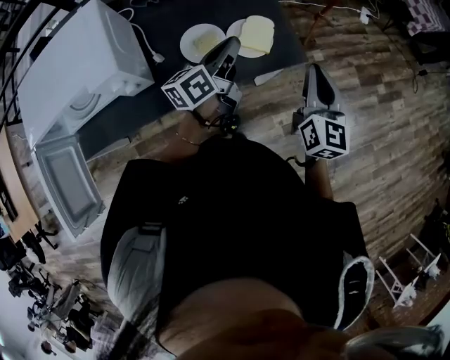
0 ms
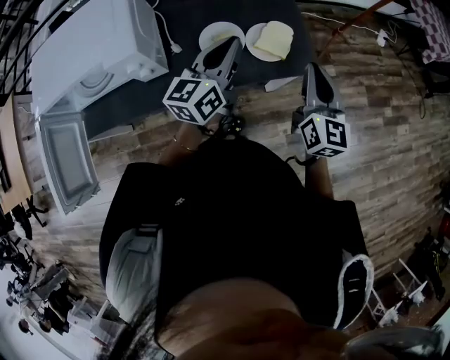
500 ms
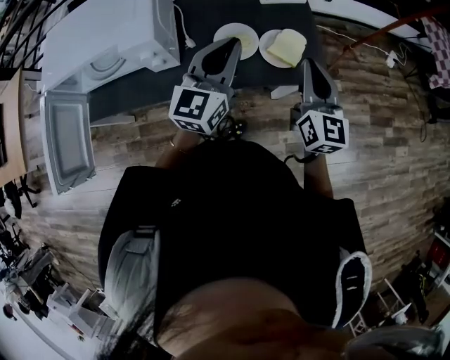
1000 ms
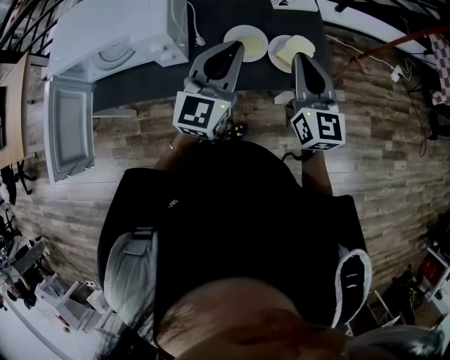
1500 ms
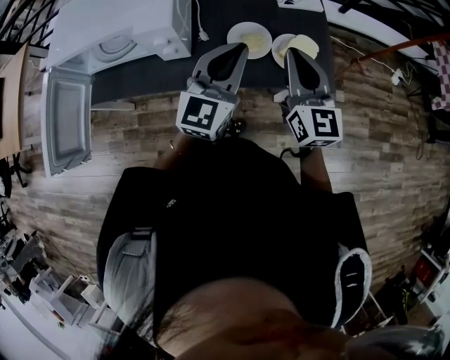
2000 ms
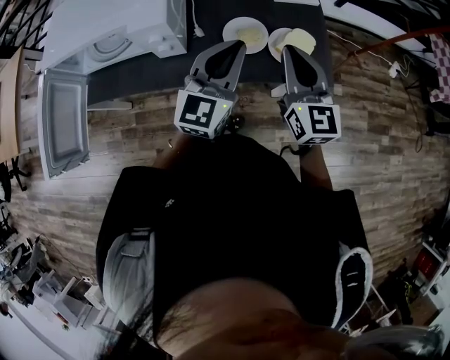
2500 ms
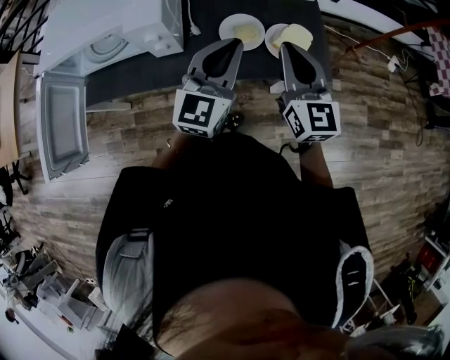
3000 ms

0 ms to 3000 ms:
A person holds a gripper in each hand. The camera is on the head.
0 ms to 1500 ms: The right gripper heads to the left, covering roughly 15 cm, and turns by about 30 degrees. Meanwhile the left gripper goes about 15 cm upward, to the left and backward, and rolls clockwise, seen from behind, by roughly 50 degrees.
1500 ms to 3000 ms: The grippers stay close to where they were, moving slightly.

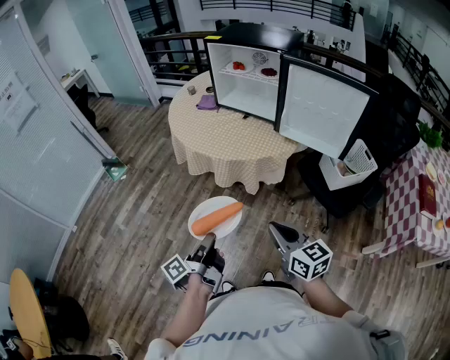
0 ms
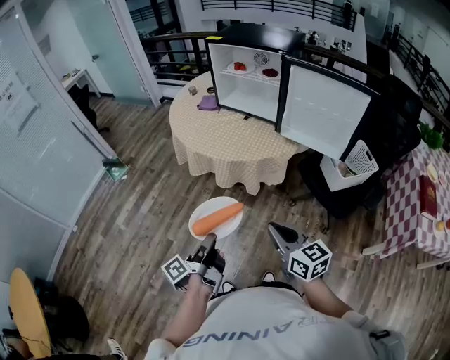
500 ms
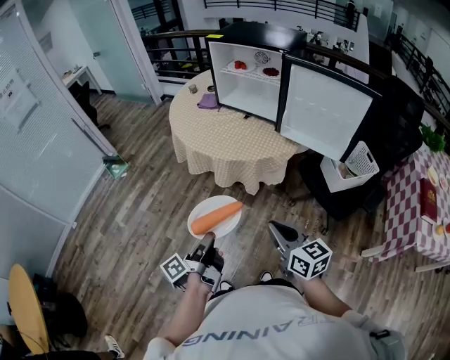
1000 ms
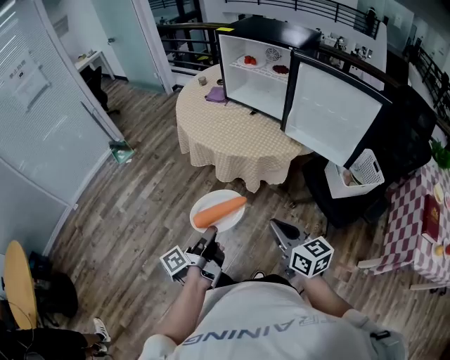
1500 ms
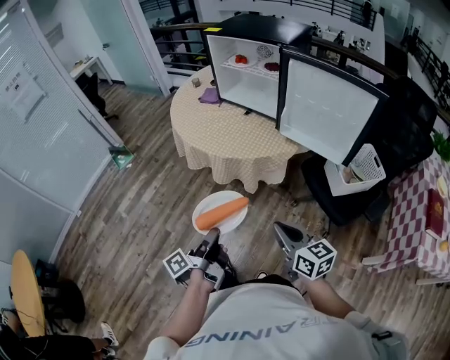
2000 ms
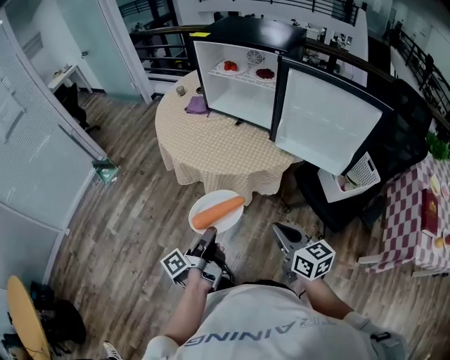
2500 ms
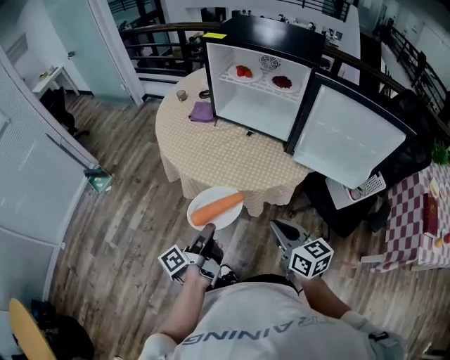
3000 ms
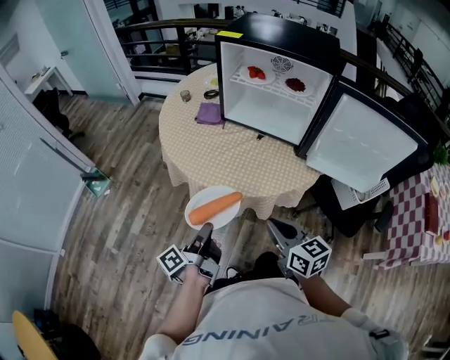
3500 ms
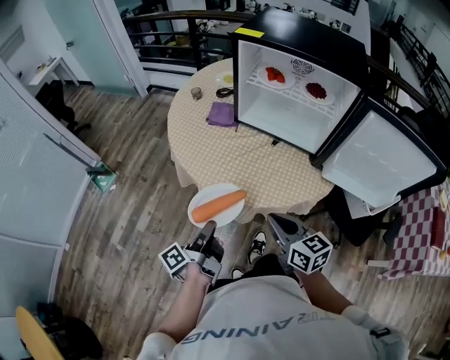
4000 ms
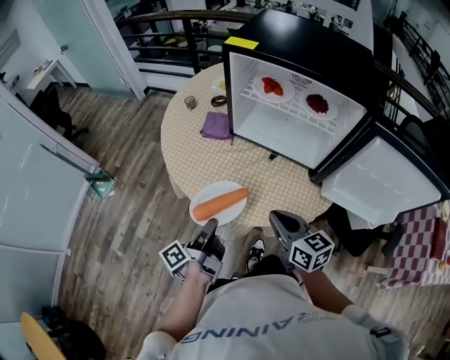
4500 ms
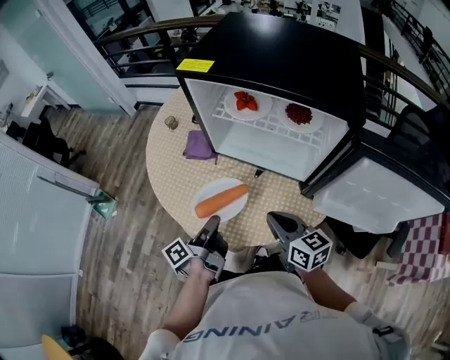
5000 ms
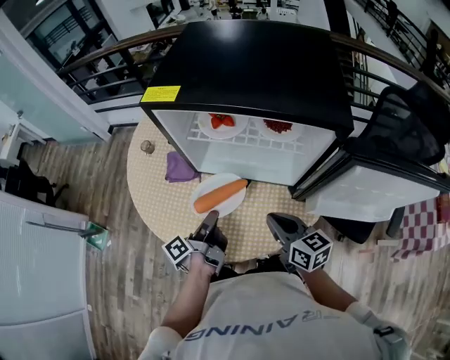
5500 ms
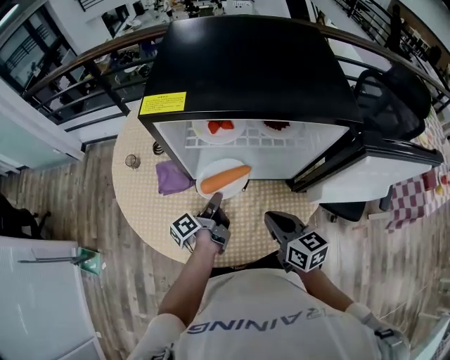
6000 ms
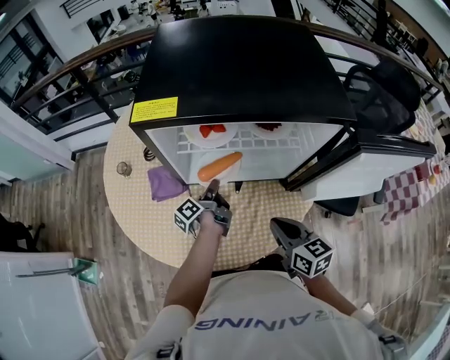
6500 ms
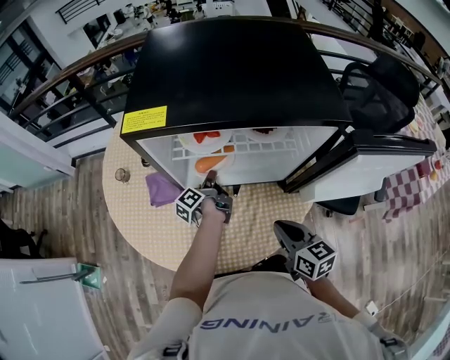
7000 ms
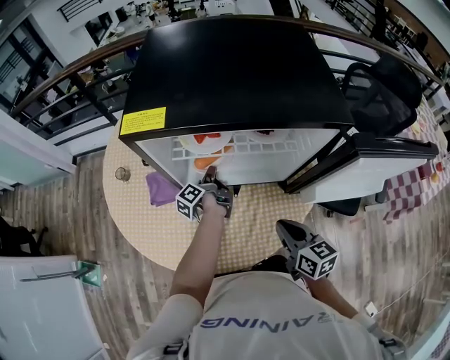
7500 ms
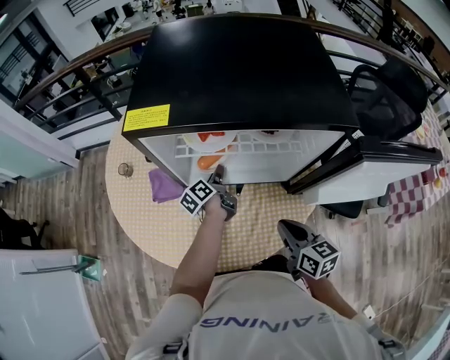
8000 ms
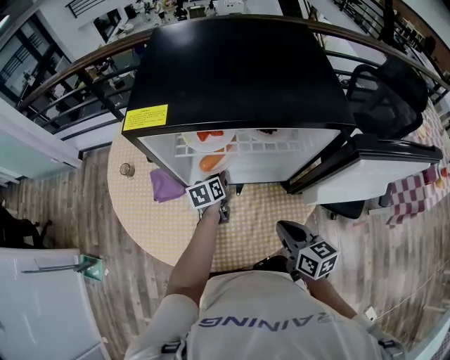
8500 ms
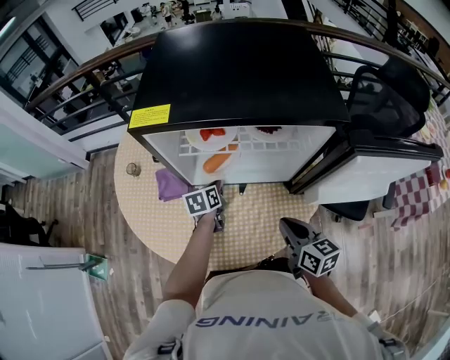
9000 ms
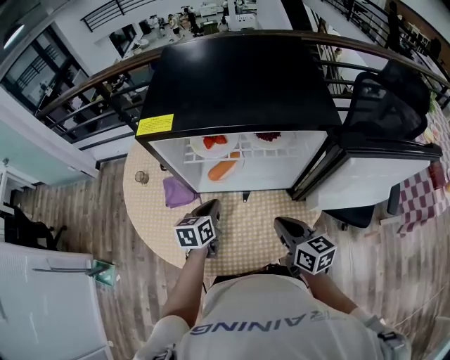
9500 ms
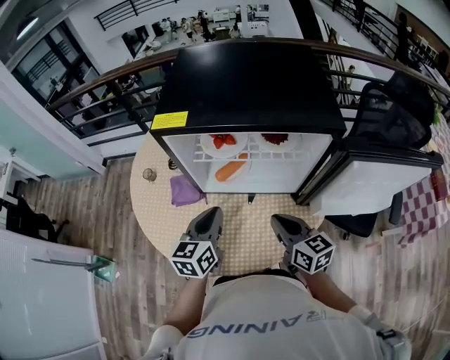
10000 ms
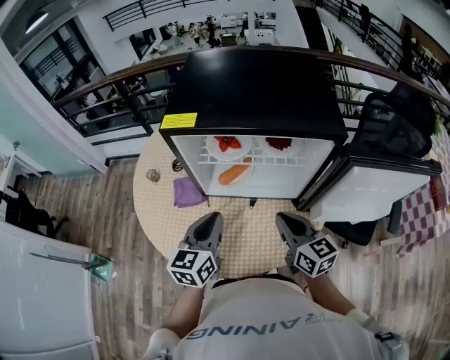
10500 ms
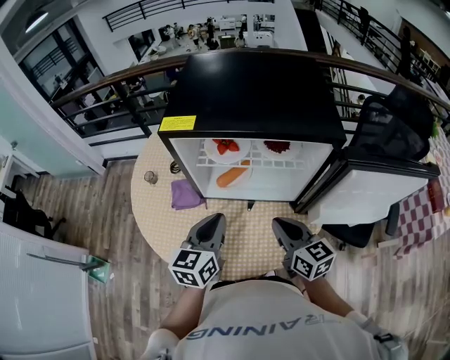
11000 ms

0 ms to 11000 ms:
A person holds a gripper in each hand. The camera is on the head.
0 ms to 2000 ms: The right gripper moves roughly 10 cm.
2000 ms to 3500 ms: The right gripper ends up about 25 cm from where it was.
3500 ms to 5500 ms: The right gripper ends up about 25 cm from where it was.
5500 ms to 7500 ms: The right gripper turns by roughly 20 degrees.
9000 ms to 11000 ms: The right gripper is displaced upward by approximately 5 cm.

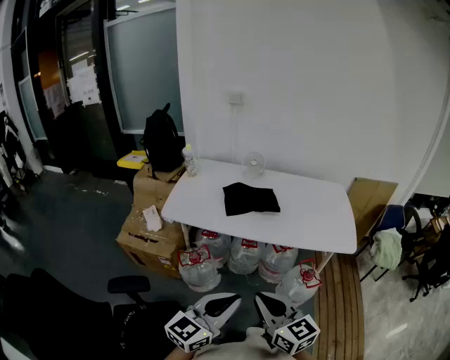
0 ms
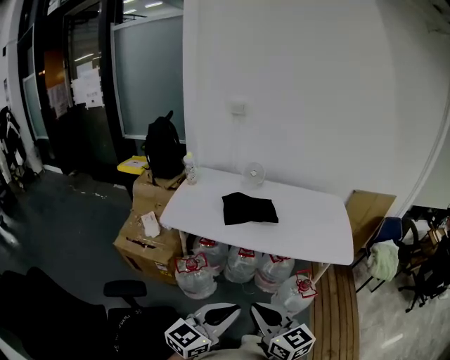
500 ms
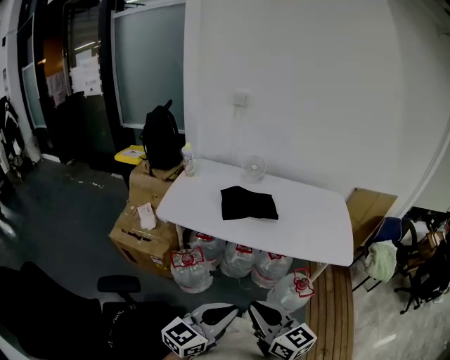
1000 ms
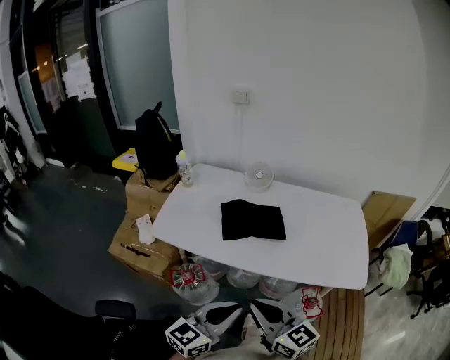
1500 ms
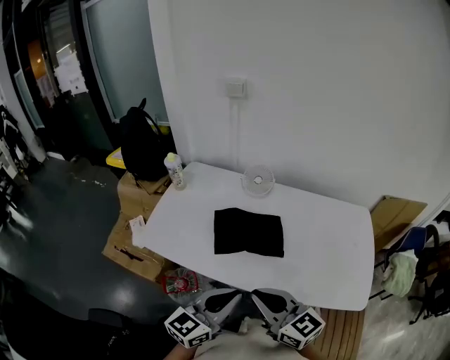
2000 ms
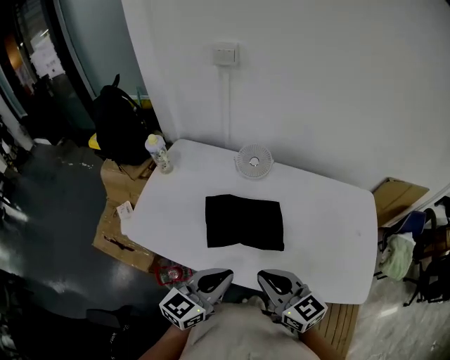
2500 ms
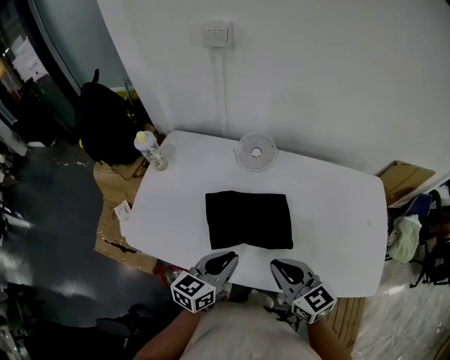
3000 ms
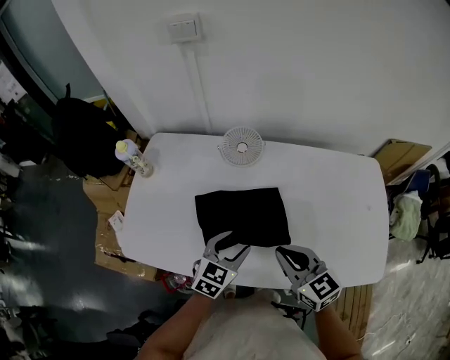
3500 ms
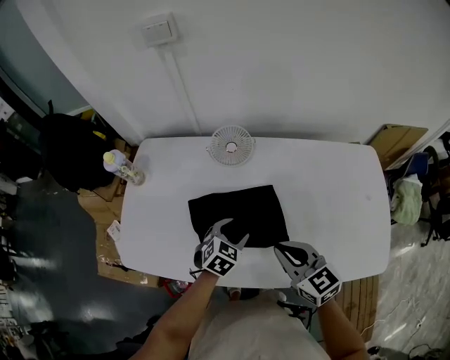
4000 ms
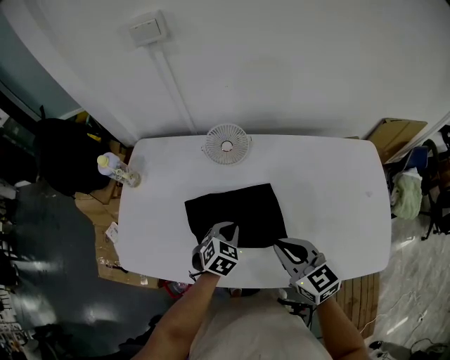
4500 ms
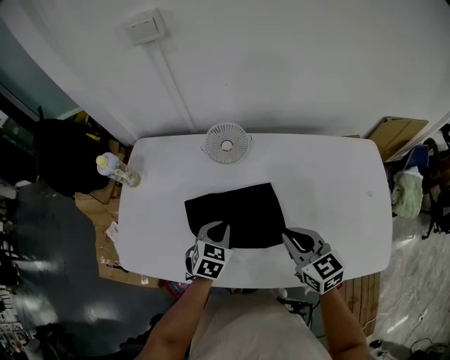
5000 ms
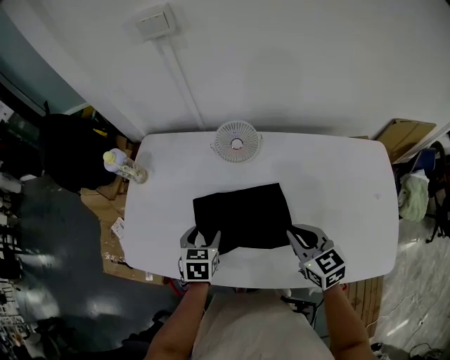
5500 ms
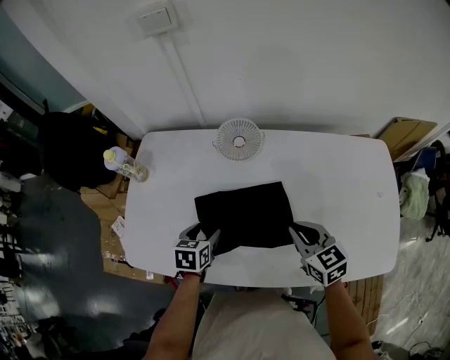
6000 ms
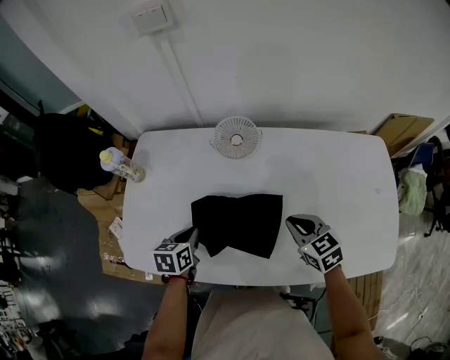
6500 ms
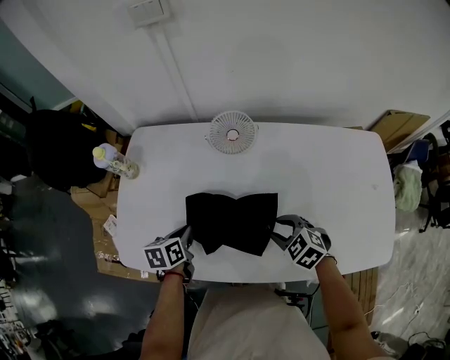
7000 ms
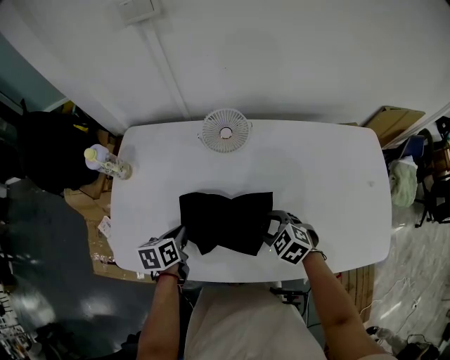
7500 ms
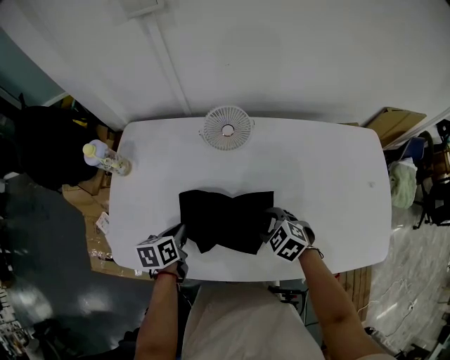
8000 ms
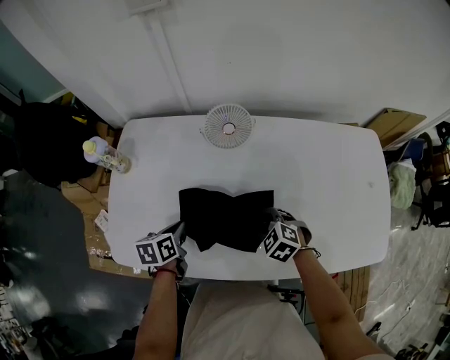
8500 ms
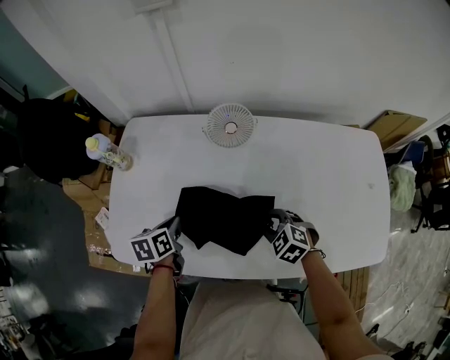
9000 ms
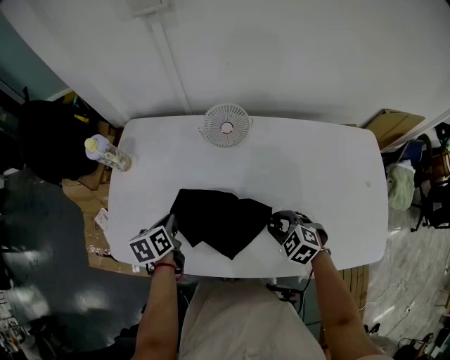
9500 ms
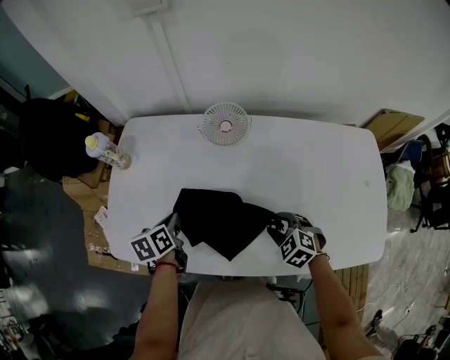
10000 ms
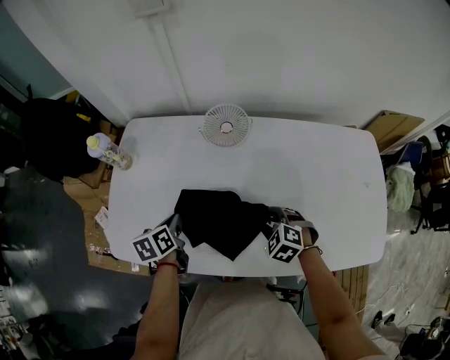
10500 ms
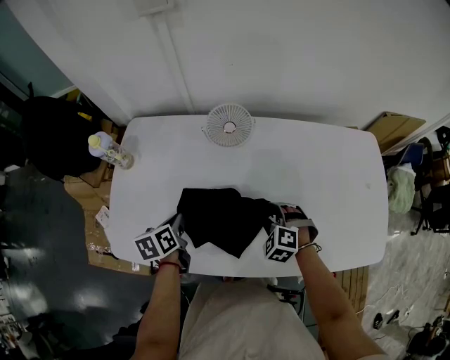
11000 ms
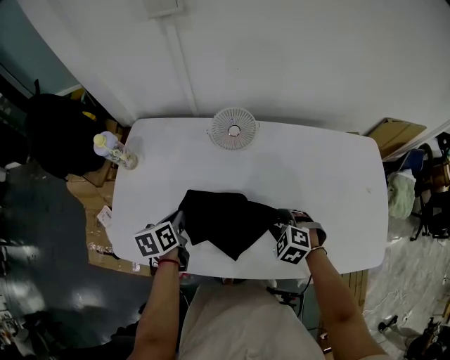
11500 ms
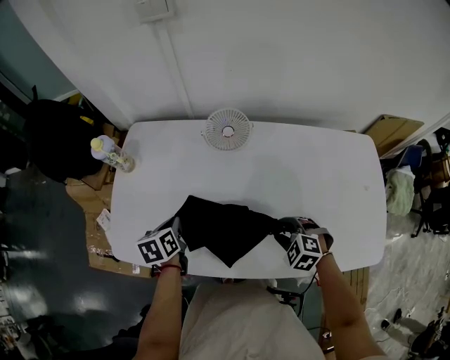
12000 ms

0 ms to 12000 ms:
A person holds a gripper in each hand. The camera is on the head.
0 ms to 2000 ms: The grippers both shift forward by approximately 35 cm.
2000 ms to 4000 ms: The right gripper travels forward and downward by approximately 25 cm, and swivels some 20 degrees; the left gripper heads forward and downward, covering approximately 40 cm, tips its fingers downward by roughly 40 degrees, and opens up.
4000 ms to 6000 ms: The right gripper heads forward, covering about 5 cm. Meanwhile the left gripper shifts roughly 15 cm to the left, swivels roughly 40 degrees, and closes, then opens again.
6000 ms to 8000 ms: The right gripper heads downward and to the left, covering approximately 15 cm, swivels approximately 40 degrees, and opens up. The left gripper shifts roughly 5 cm to the left, and closes up.
8000 ms to 10000 ms: The right gripper is displaced to the right by roughly 5 cm.
10000 ms to 12000 ms: The grippers make only small movements.

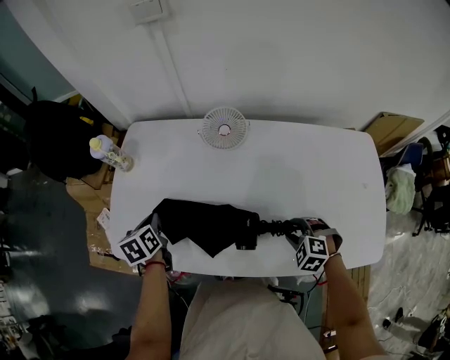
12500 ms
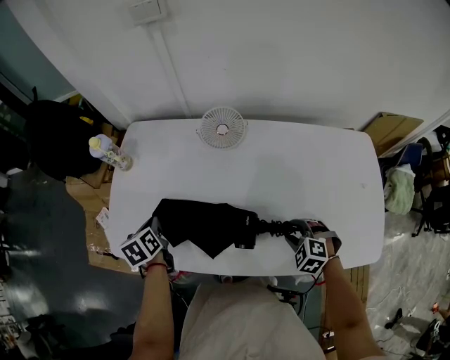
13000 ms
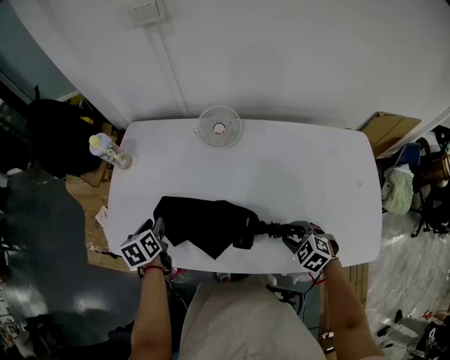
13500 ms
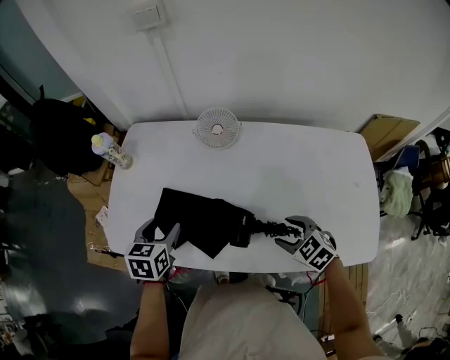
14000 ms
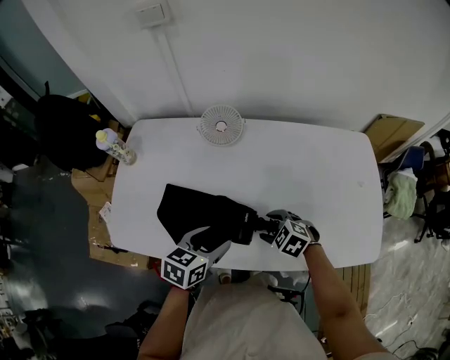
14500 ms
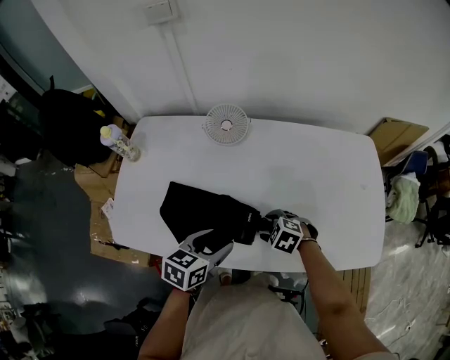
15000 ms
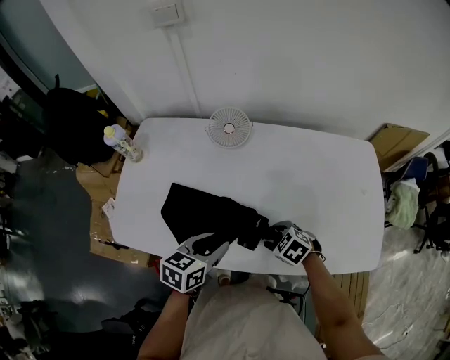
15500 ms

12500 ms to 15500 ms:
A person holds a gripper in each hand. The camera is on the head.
12500 ms to 14000 ms: The left gripper is displaced backward, to the right and upward by roughly 10 cm, swivels about 30 degrees, and opens up. Meanwhile the right gripper is displaced upward by about 5 cm, and turns by approximately 30 degrees.
14000 ms to 15500 ms: The left gripper heads to the right and backward, covering approximately 15 cm, swivels roughly 30 degrees, and closes, while the right gripper shifts some 5 cm downward.
